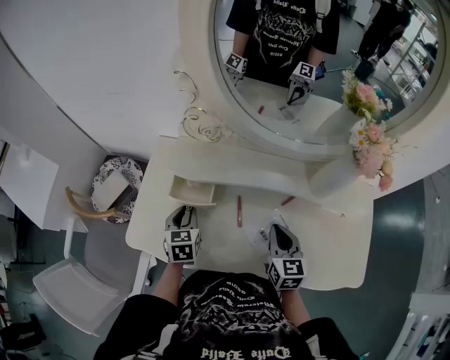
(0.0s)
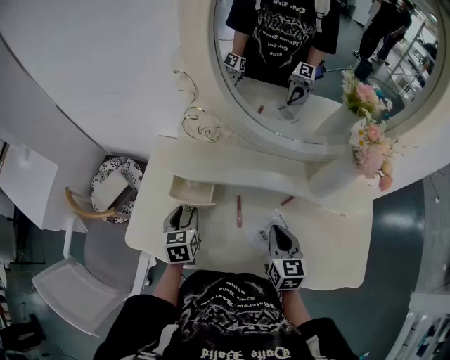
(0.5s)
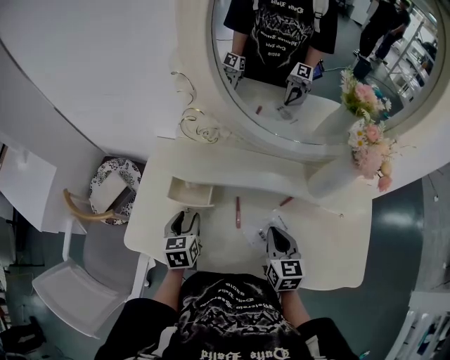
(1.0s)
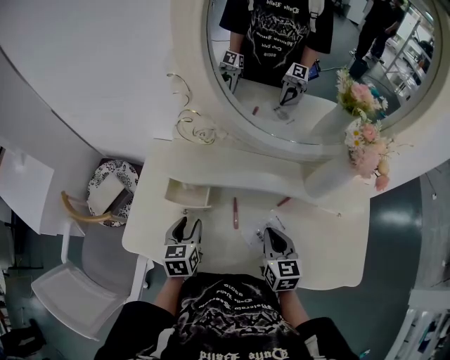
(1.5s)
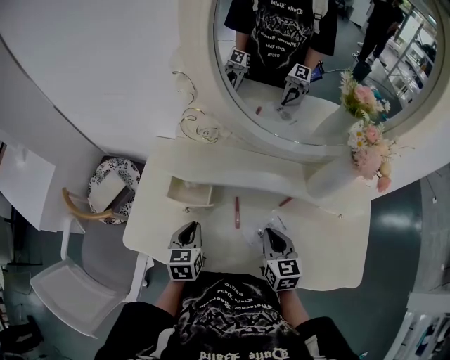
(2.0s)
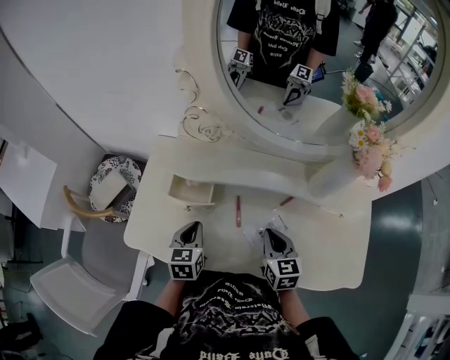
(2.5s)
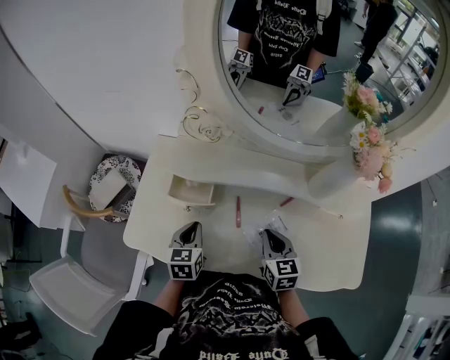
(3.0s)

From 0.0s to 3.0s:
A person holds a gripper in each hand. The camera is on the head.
From 0.0s to 1.5s: The grippers stay close to where they were, moving slightly.
From 1.5s to 3.0s: The left gripper closes its fingers.

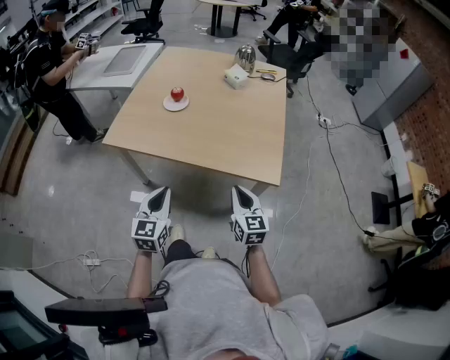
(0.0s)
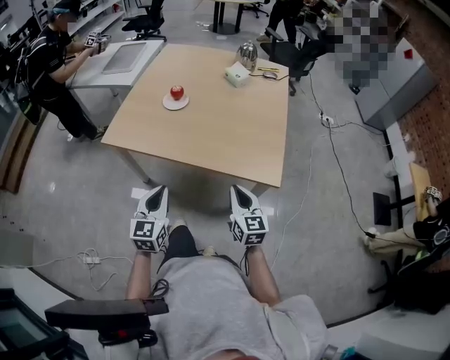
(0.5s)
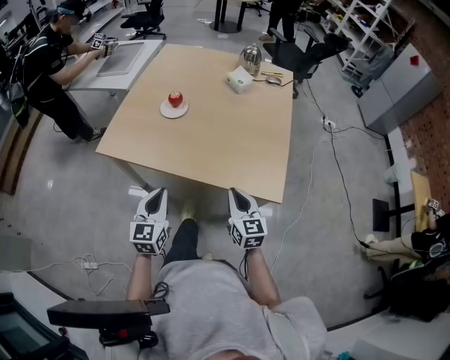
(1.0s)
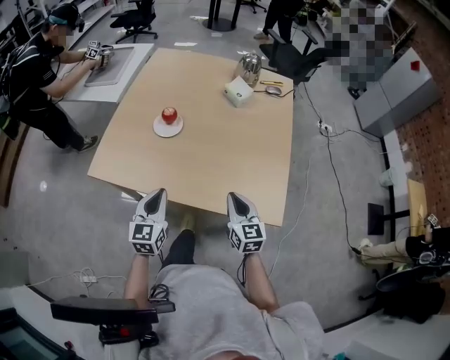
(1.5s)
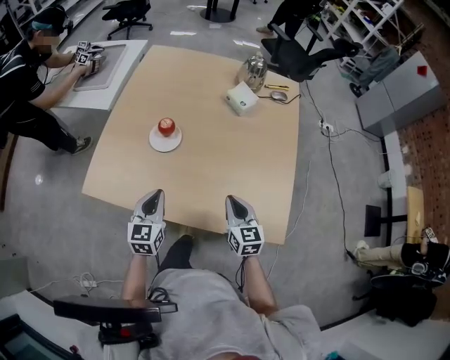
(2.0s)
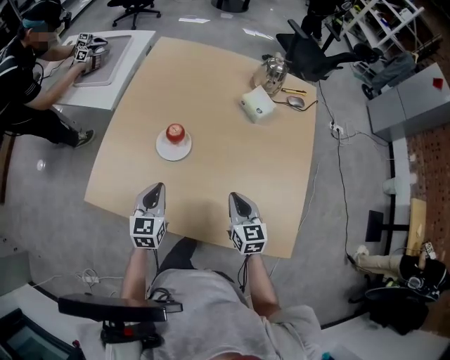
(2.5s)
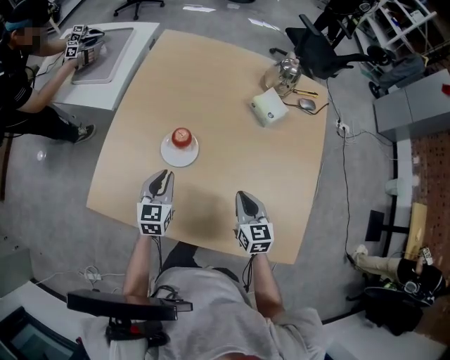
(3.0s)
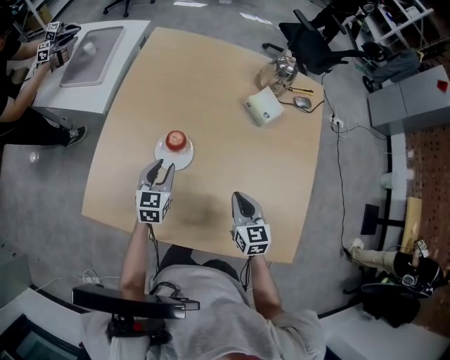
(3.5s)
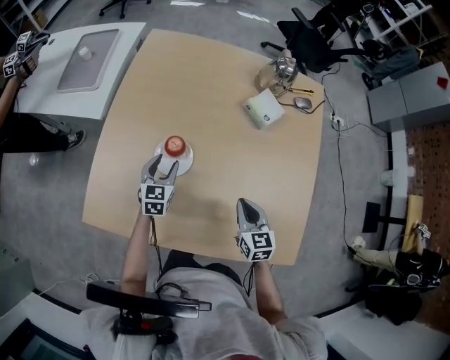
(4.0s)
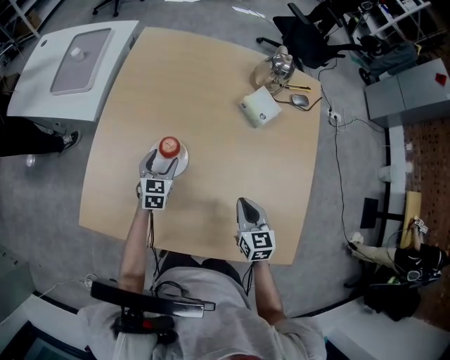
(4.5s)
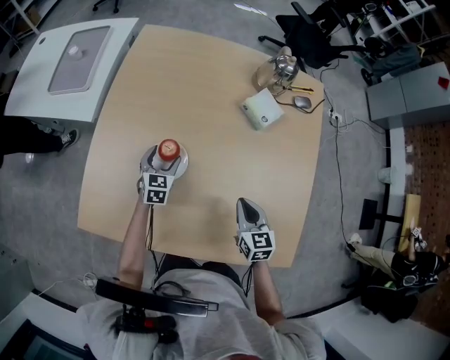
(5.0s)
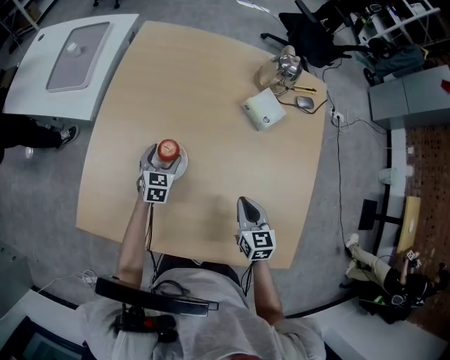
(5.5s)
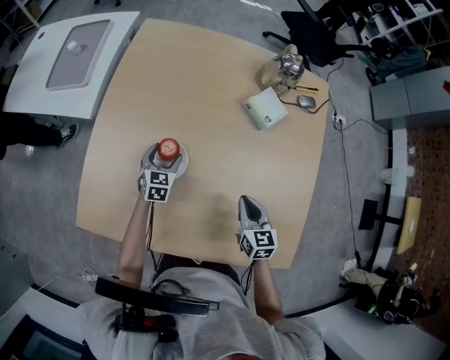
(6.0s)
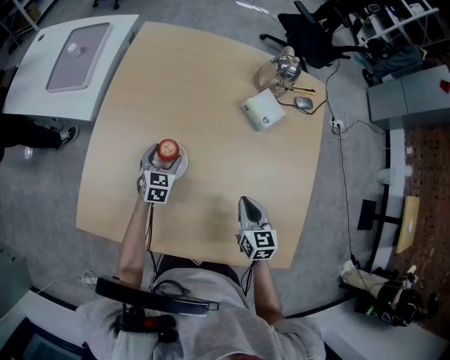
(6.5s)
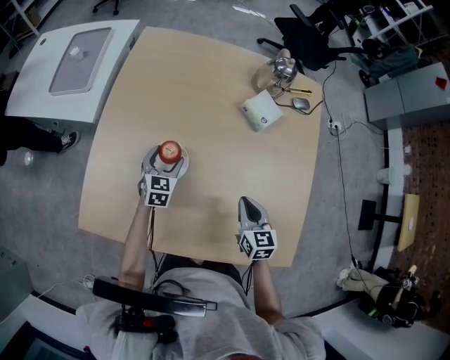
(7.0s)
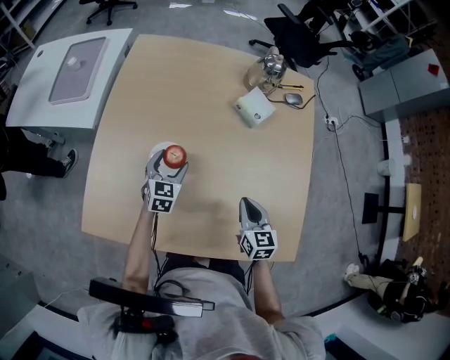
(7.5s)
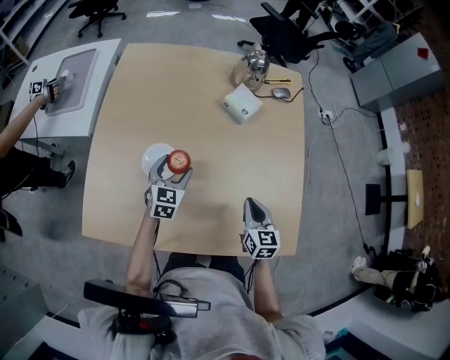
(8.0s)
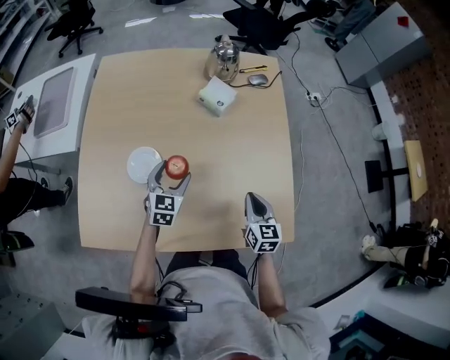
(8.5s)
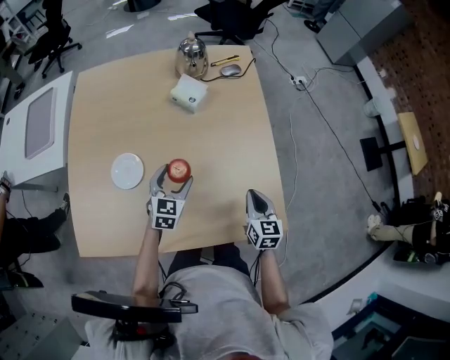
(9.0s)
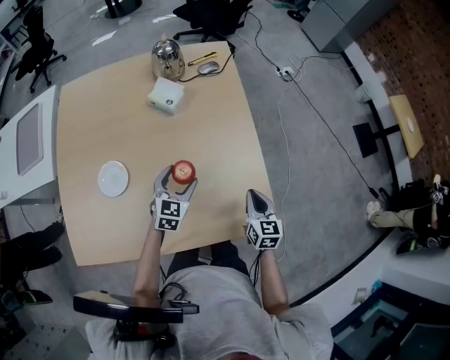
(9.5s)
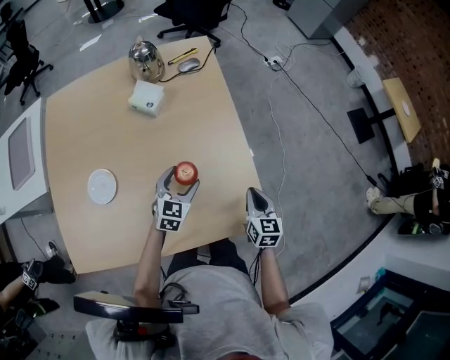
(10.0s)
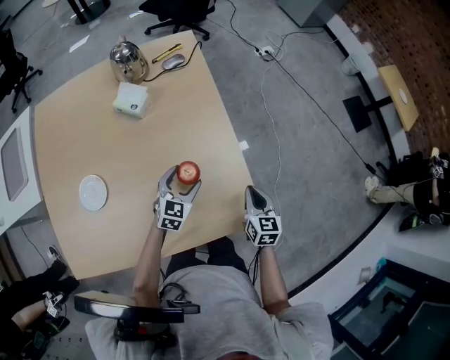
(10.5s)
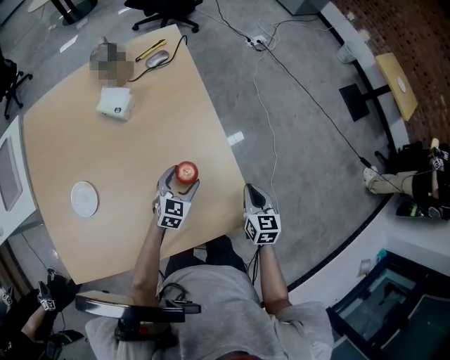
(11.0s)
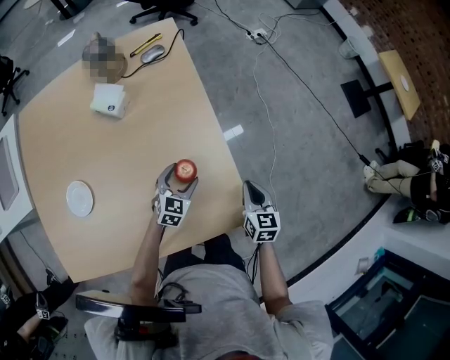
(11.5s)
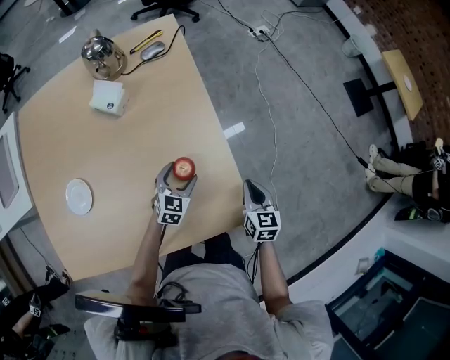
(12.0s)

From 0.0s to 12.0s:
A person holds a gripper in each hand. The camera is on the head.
From 0.0s to 2.0s: The two grippers go approximately 30 cm forward.
From 2.0s to 4.0s: The left gripper travels forward and downward by roughly 30 cm, and opens up. The right gripper heads forward, covering about 15 cm.
From 4.0s to 6.0s: The right gripper shifts by approximately 5 cm. The left gripper shifts approximately 10 cm downward and forward.
From 6.0s to 8.0s: The right gripper is displaced backward and to the right by some 10 cm. Meanwhile the left gripper heads upward, to the right and backward, covering approximately 15 cm.
From 8.0s to 10.0s: Both grippers travel together to the right, some 30 cm. The left gripper turns by approximately 20 degrees. Meanwhile the right gripper turns by approximately 20 degrees.
From 10.0s to 12.0s: The left gripper is displaced downward and to the right by approximately 15 cm, while the right gripper goes some 10 cm to the right.

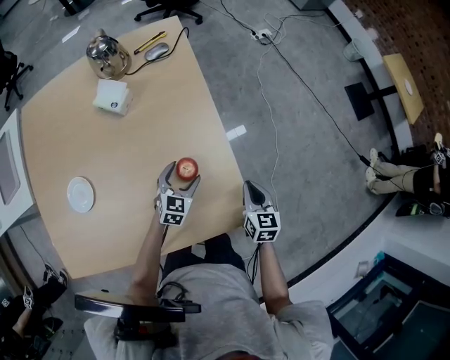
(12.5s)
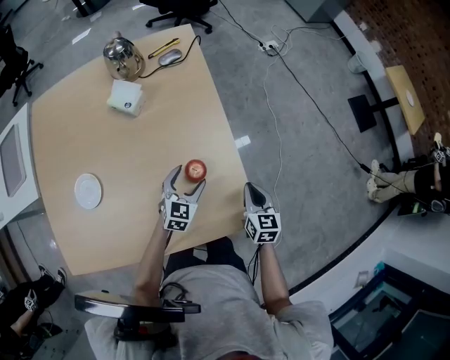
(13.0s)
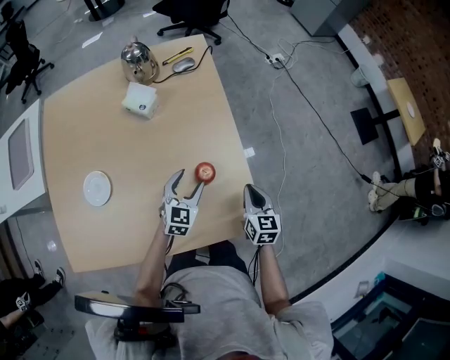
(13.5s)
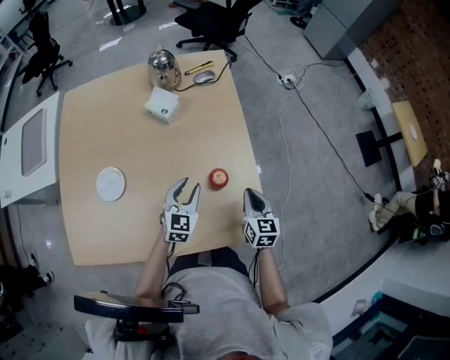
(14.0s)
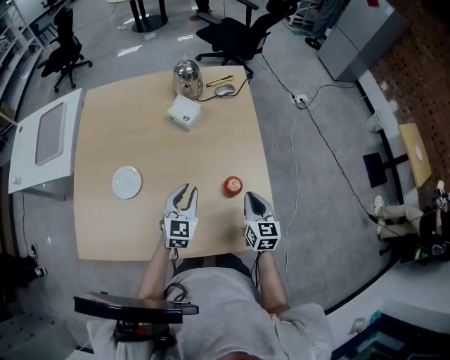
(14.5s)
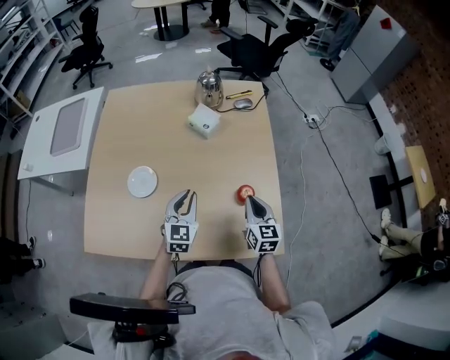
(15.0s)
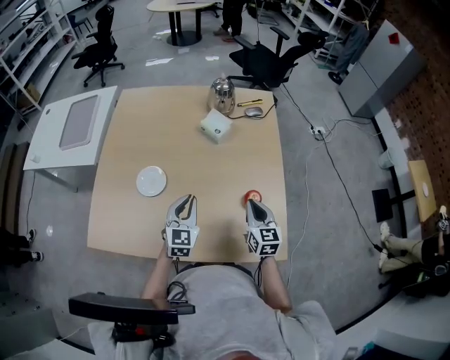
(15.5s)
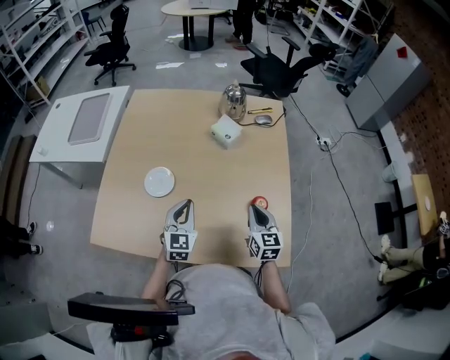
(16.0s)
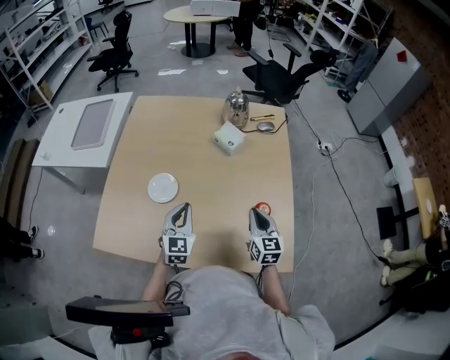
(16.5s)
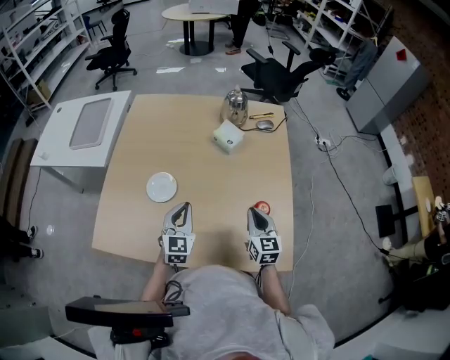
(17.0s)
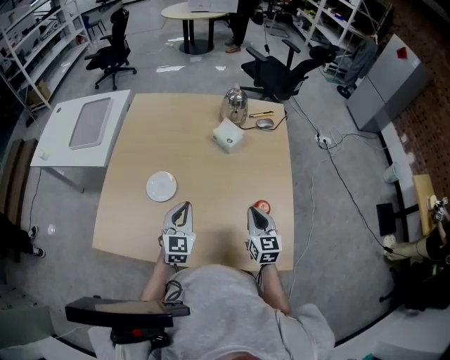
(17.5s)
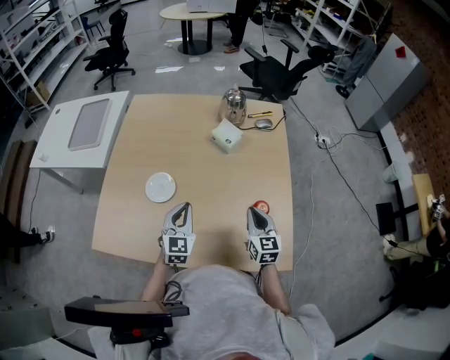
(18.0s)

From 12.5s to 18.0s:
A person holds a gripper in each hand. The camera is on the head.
From 12.5s to 14.5s: The left gripper shifts roughly 25 cm upward, to the left and backward, rotates roughly 30 degrees, and closes up, while the right gripper travels to the left and upward by approximately 20 cm.
From 14.5s to 16.0s: Both grippers travel together to the left, some 10 cm.
From 16.0s to 18.0s: The grippers stay close to where they were, moving slightly.

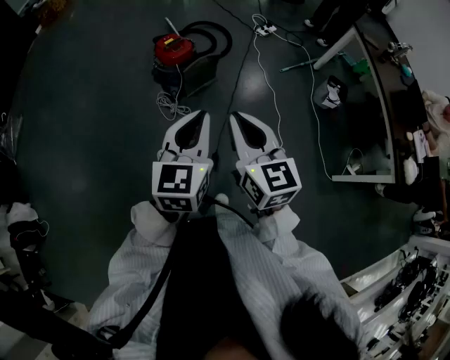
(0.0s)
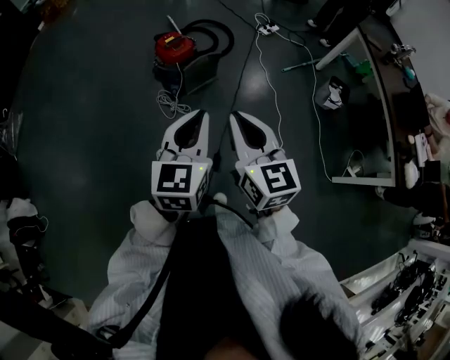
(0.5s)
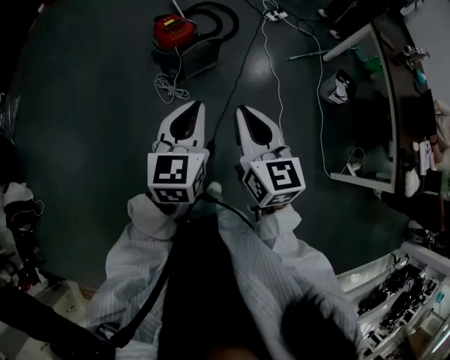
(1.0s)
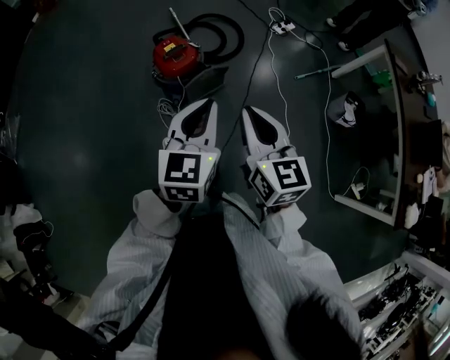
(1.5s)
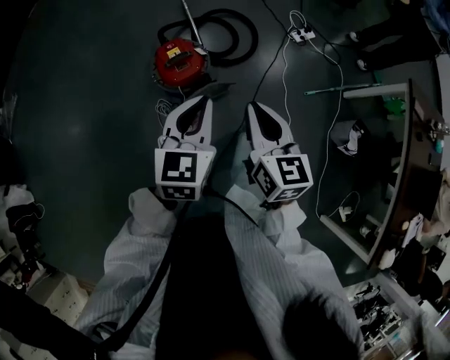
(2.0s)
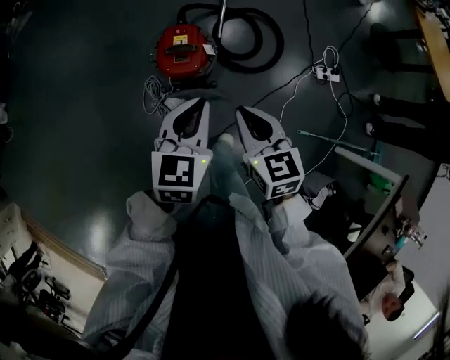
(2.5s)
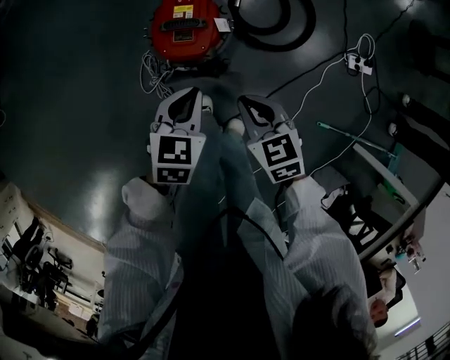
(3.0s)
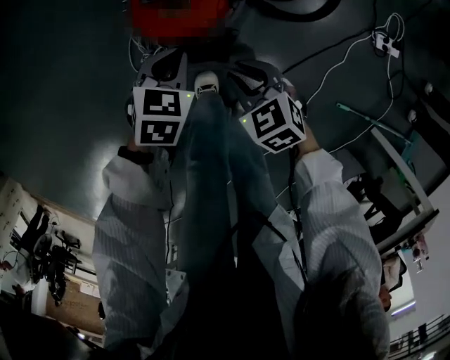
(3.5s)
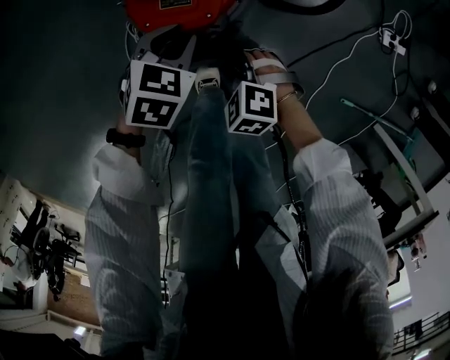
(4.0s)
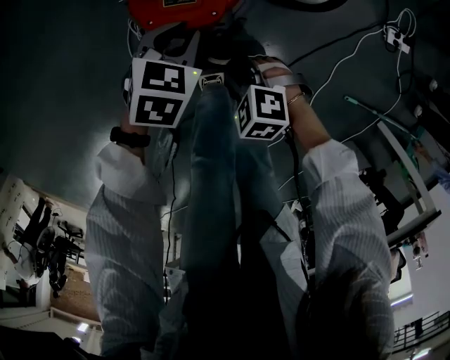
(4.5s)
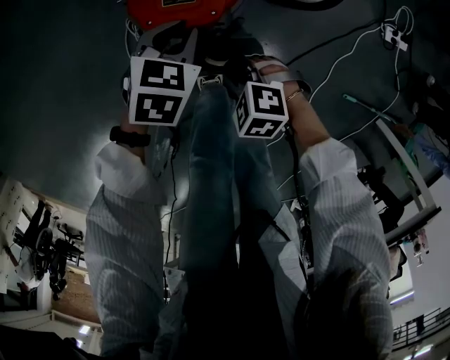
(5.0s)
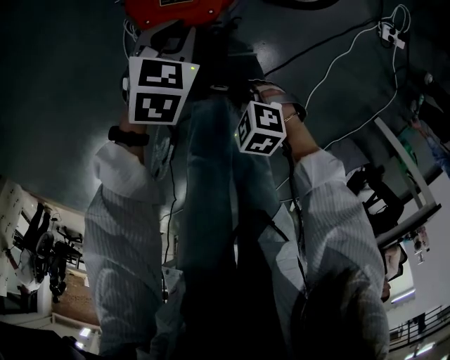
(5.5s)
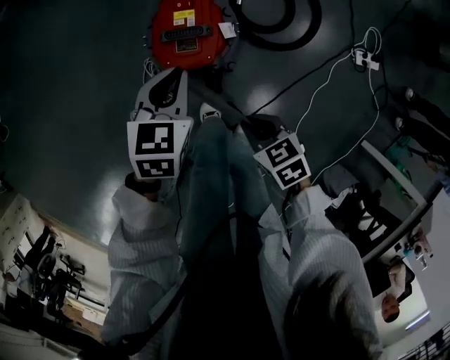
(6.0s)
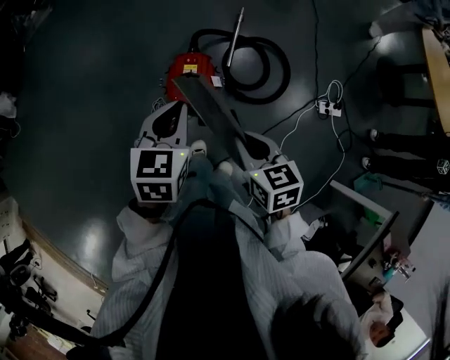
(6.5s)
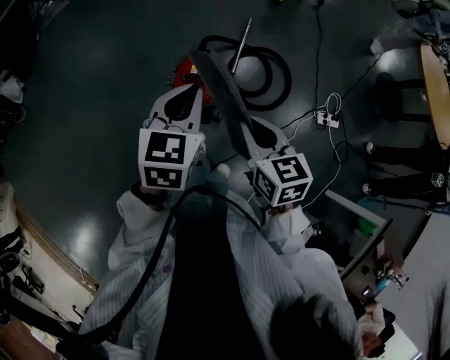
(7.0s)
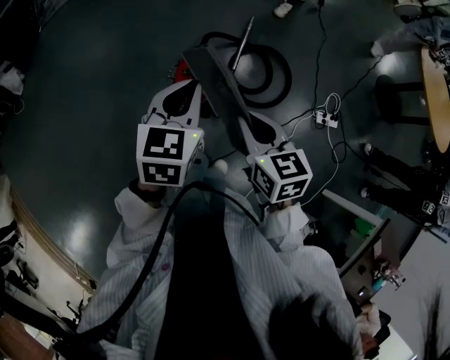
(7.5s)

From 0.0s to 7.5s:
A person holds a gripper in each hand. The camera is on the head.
From 0.0s to 2.0s: The pair of grippers is taken forward, approximately 50 cm.
From 2.0s to 4.0s: Both grippers move downward, about 60 cm. The left gripper tilts its fingers some 40 degrees downward, and opens. Meanwhile the right gripper tips its fingers downward by some 50 degrees, and opens up.
From 4.0s to 5.5s: The right gripper changes place by some 10 cm, and closes.
From 5.5s to 7.5s: The grippers both shift upward by roughly 60 cm. The right gripper tilts its fingers some 40 degrees upward. Meanwhile the left gripper swivels roughly 30 degrees.
